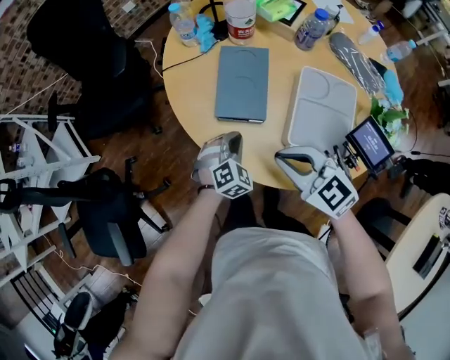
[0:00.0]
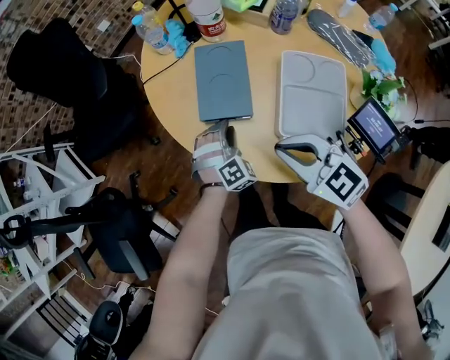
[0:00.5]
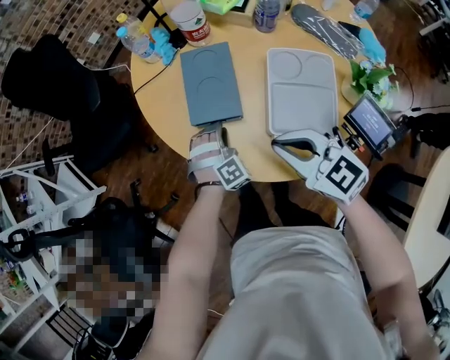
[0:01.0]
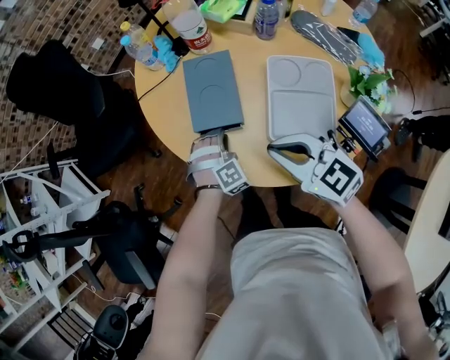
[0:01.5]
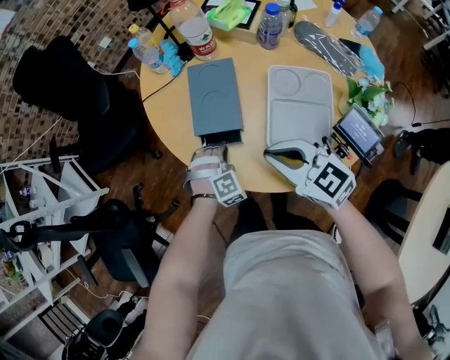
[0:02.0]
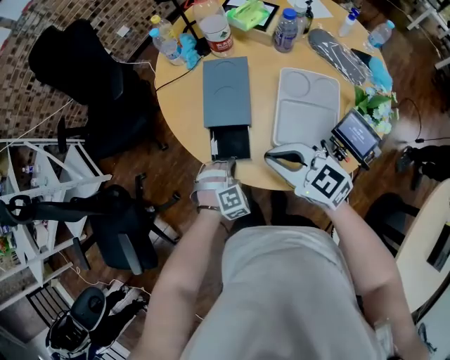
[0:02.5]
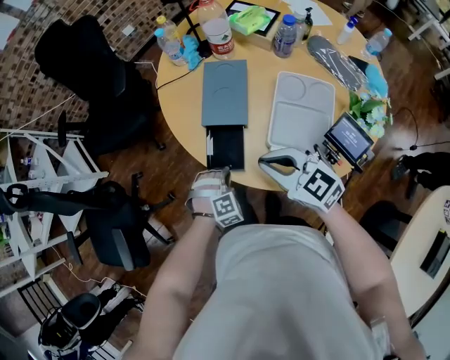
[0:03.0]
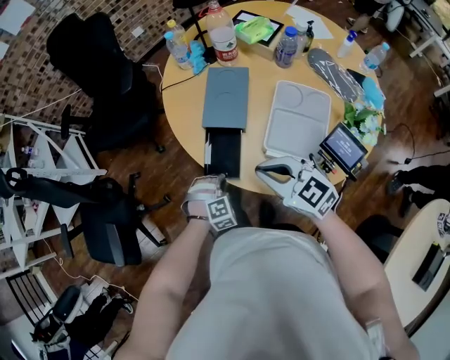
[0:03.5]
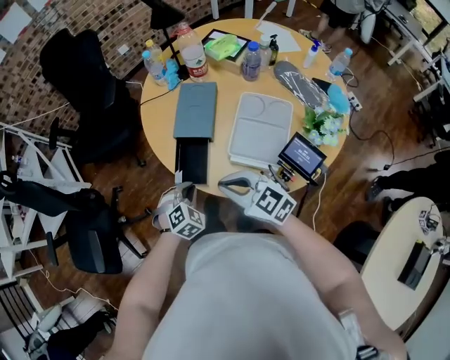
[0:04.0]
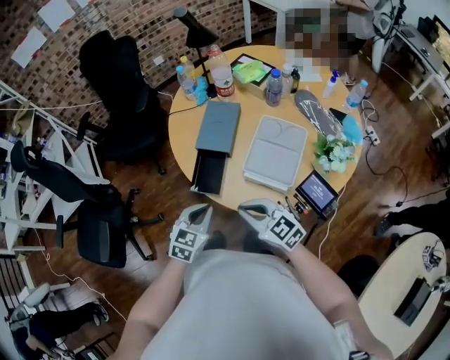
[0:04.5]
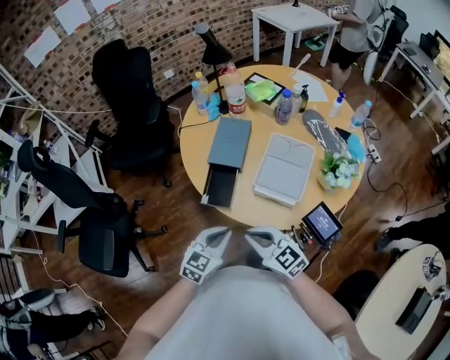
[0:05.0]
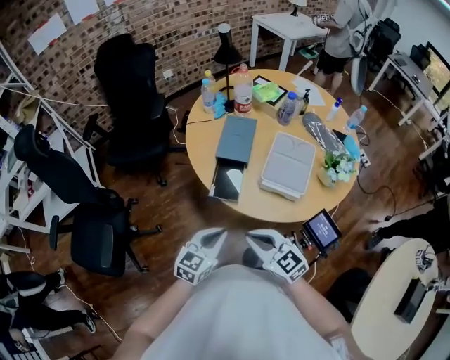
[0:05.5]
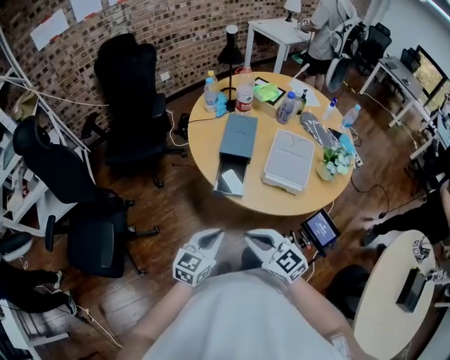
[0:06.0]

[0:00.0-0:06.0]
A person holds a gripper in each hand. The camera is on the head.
0:00.0 to 0:02.0: The left gripper swivels approximately 30 degrees.
0:02.0 to 0:04.0: The right gripper heads backward and to the left, covering approximately 10 cm; the left gripper heads backward, to the left and upward, covering some 15 cm, and turns by some 30 degrees.
0:04.0 to 0:06.0: The left gripper goes approximately 20 cm backward, upward and to the left, and tilts its fingers some 30 degrees upward. The right gripper shifts approximately 20 cm backward and to the left.

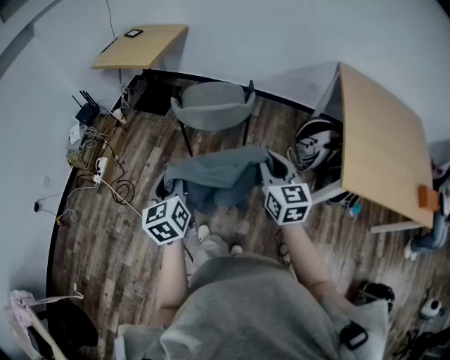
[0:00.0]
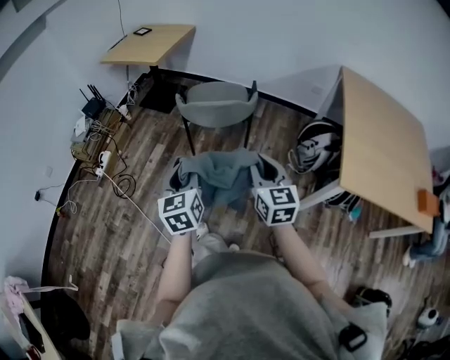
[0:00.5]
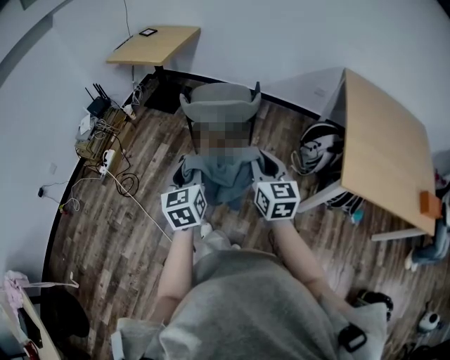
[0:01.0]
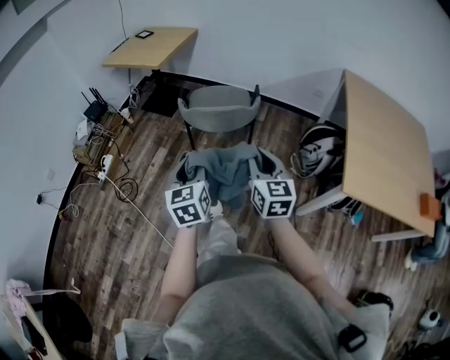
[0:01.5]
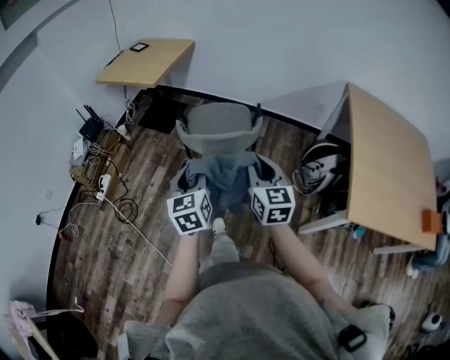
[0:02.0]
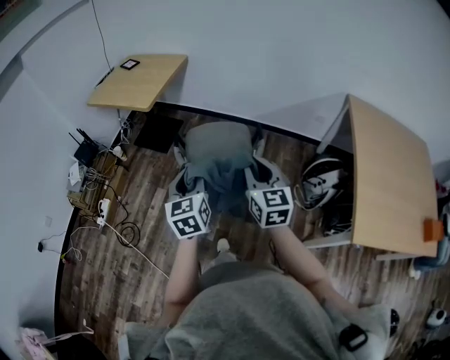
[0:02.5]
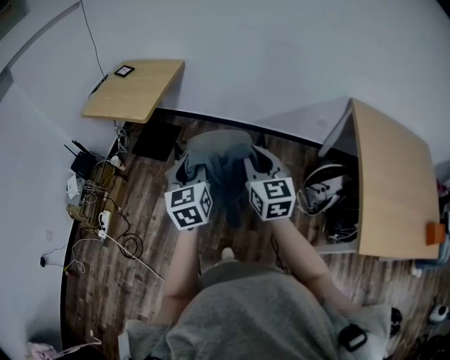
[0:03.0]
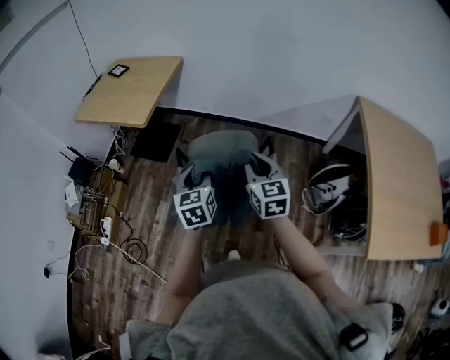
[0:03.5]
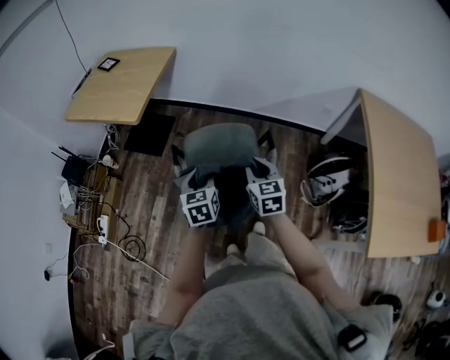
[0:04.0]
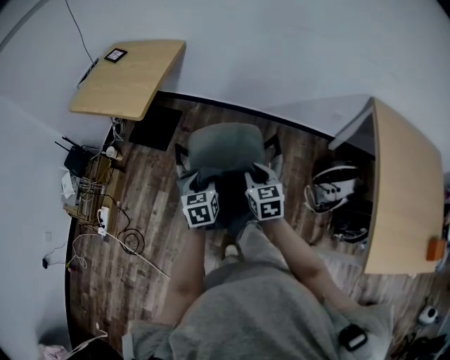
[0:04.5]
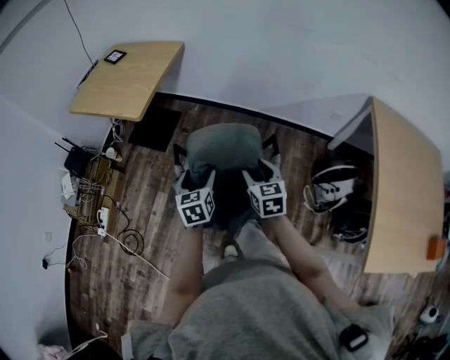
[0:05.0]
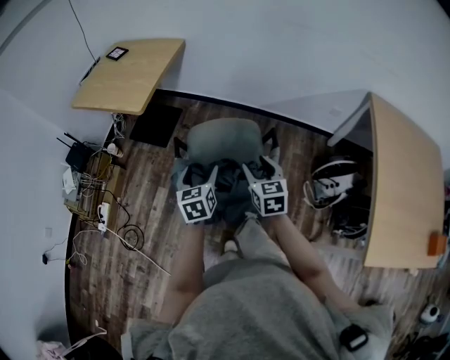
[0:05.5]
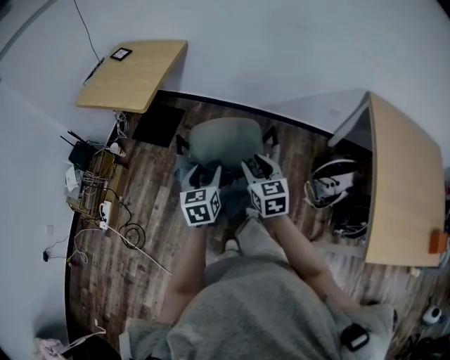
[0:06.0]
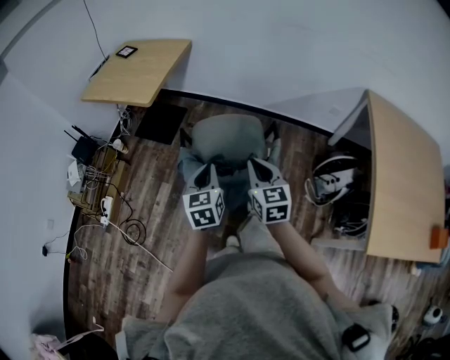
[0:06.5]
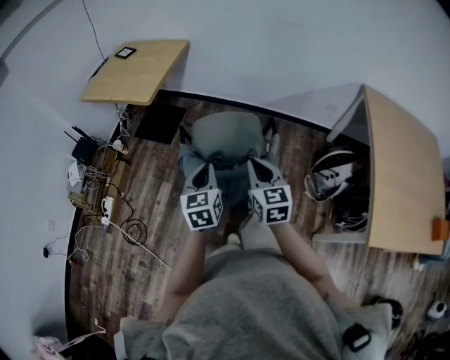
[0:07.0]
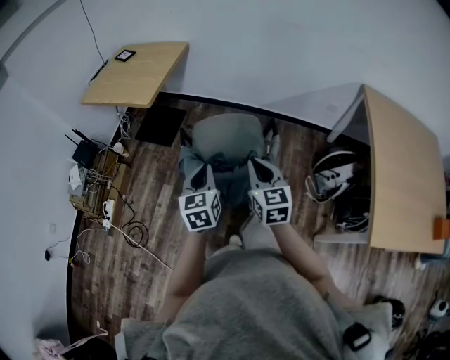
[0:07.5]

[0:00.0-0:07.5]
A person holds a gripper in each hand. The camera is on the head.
0:00.0 to 0:02.0: The left gripper shifts about 15 cm forward and to the right. Meanwhile the right gripper heads forward, covering approximately 10 cm.
0:02.0 to 0:04.0: The two grippers go about 30 cm forward.
0:04.0 to 0:05.5: The right gripper opens up; the left gripper opens its fingers.
0:05.5 to 0:07.5: The two grippers go some 10 cm backward and upward. The right gripper closes, while the left gripper closes.

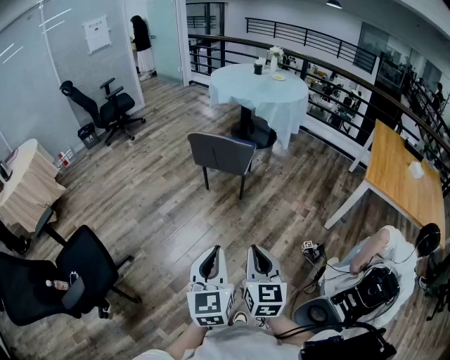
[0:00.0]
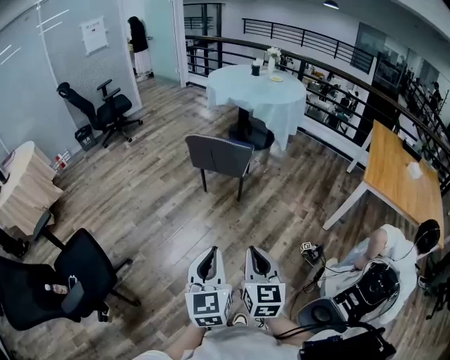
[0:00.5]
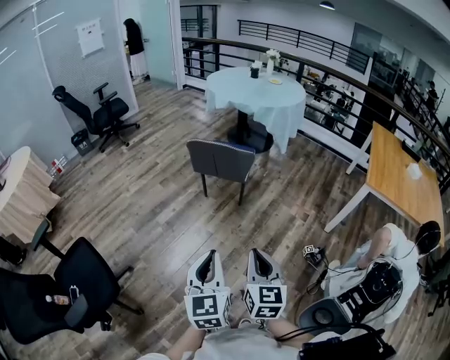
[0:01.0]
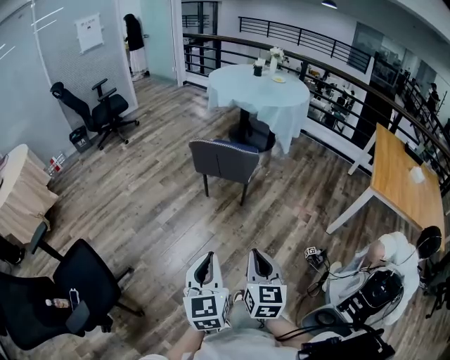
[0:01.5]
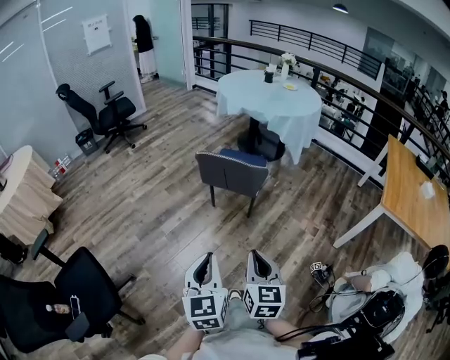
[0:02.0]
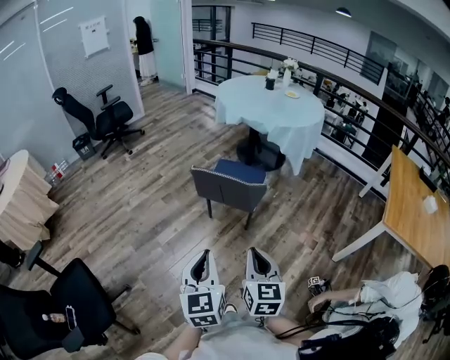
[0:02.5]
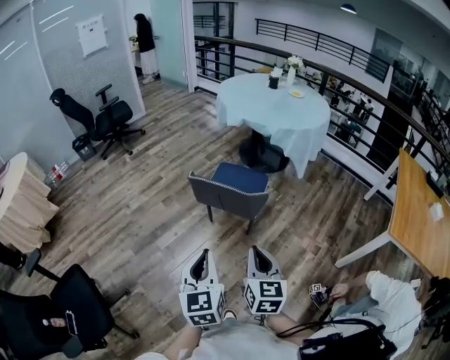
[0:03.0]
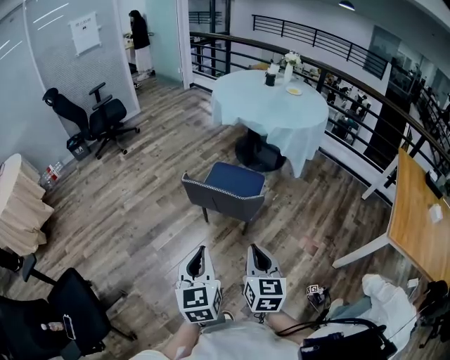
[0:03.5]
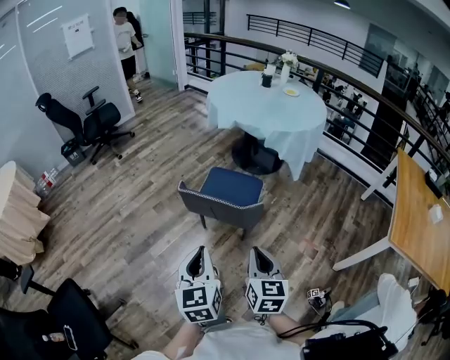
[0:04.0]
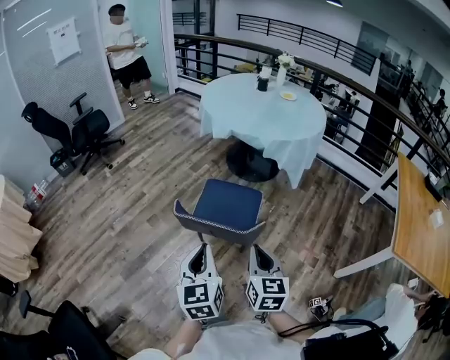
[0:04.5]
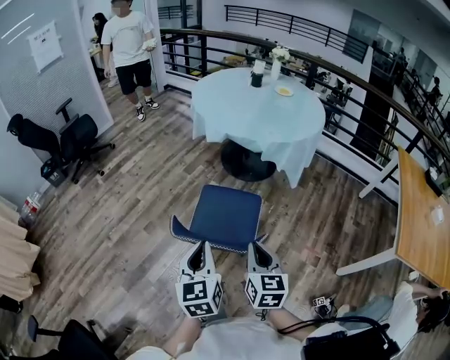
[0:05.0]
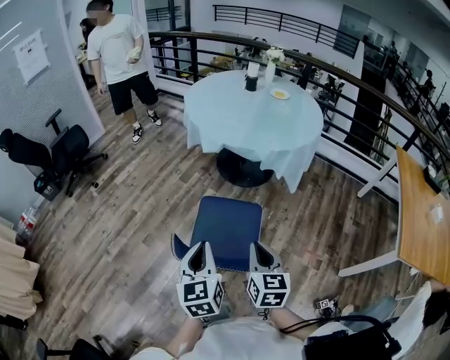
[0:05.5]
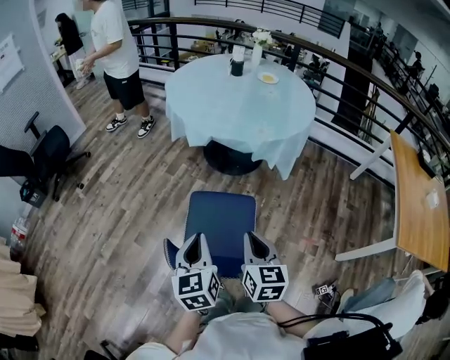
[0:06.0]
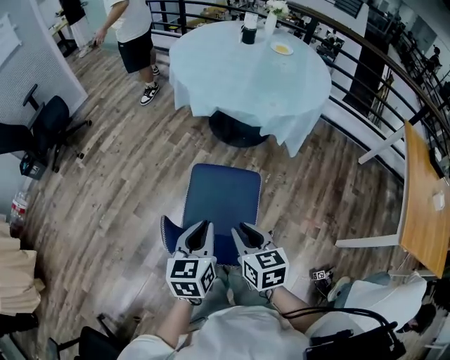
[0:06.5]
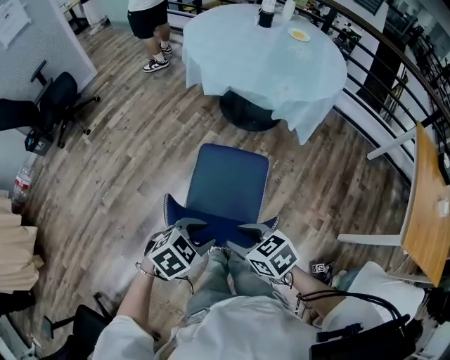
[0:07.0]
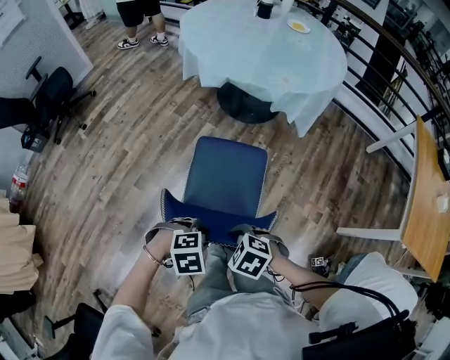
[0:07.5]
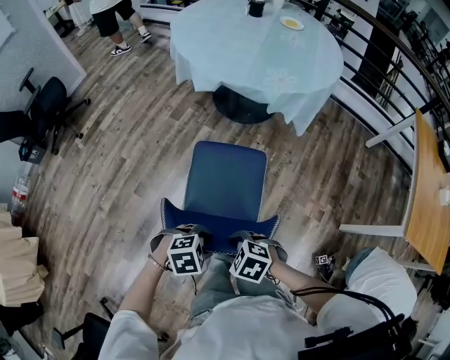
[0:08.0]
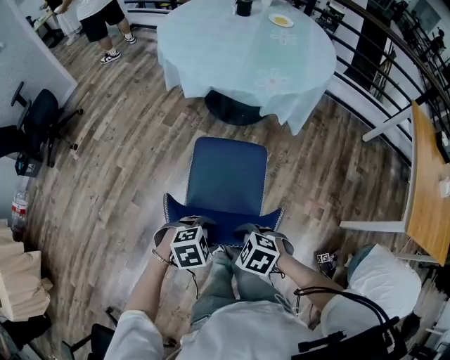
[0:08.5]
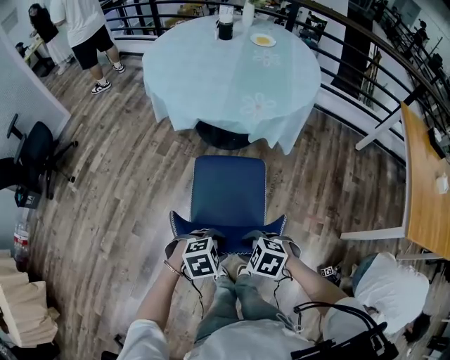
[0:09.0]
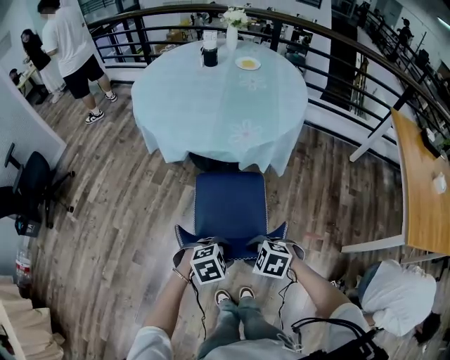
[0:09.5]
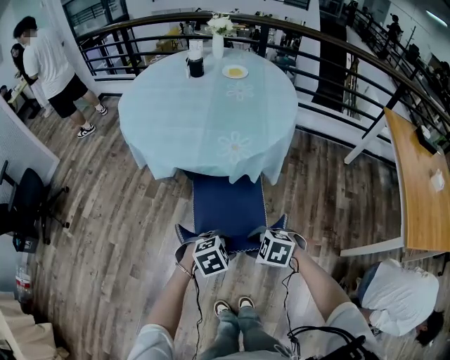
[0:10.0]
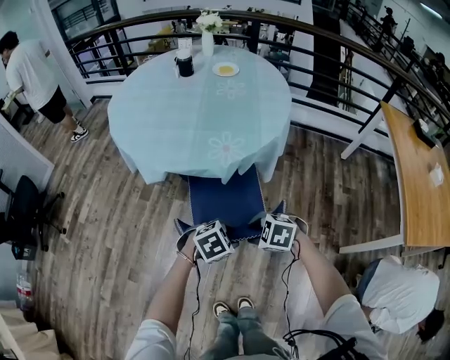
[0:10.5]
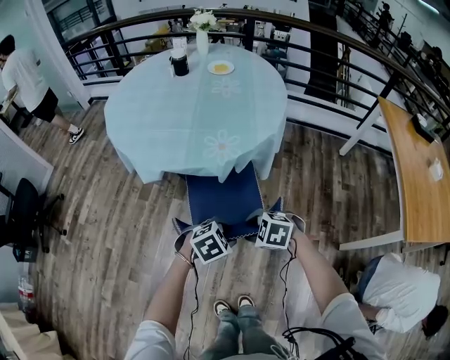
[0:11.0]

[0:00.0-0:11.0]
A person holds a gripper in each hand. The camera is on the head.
0:00.0 to 0:02.0: The right gripper shifts approximately 15 cm forward, while the left gripper shifts roughly 20 cm forward and to the left.
0:02.0 to 0:03.5: Both grippers travel together forward, approximately 20 cm.
0:03.5 to 0:05.5: Both grippers move forward, roughly 35 cm.
0:05.5 to 0:07.5: Both grippers travel together downward, some 20 cm. The left gripper tips its fingers downward by approximately 60 degrees, and opens; the right gripper angles its fingers downward, by about 50 degrees, and opens.
0:07.5 to 0:09.0: The left gripper moves some 15 cm. Meanwhile the right gripper ends up some 15 cm from where it was.
0:09.0 to 0:11.0: The right gripper shifts by roughly 25 cm, while the left gripper changes place by roughly 25 cm.

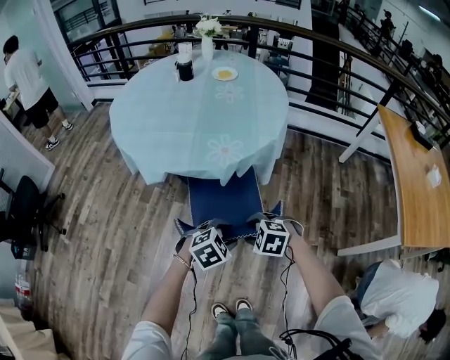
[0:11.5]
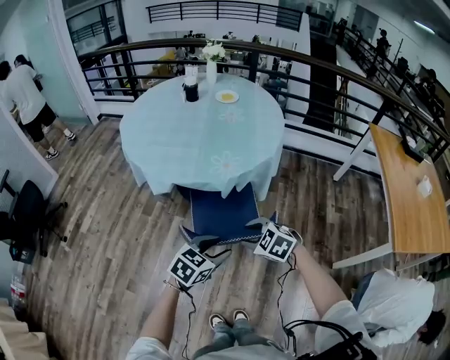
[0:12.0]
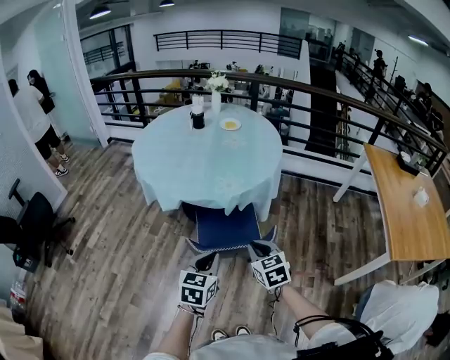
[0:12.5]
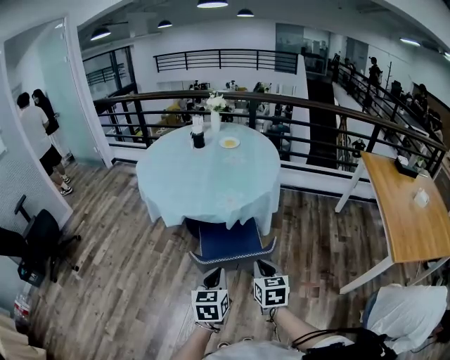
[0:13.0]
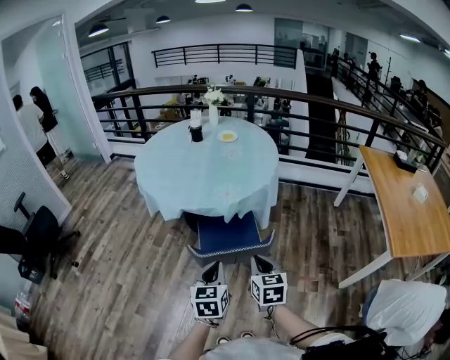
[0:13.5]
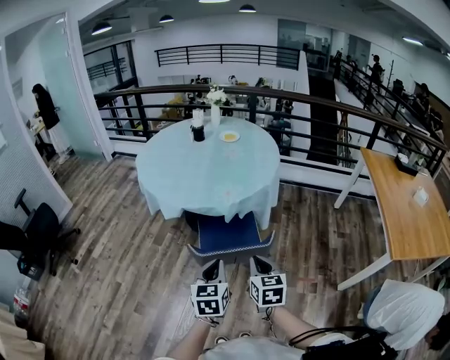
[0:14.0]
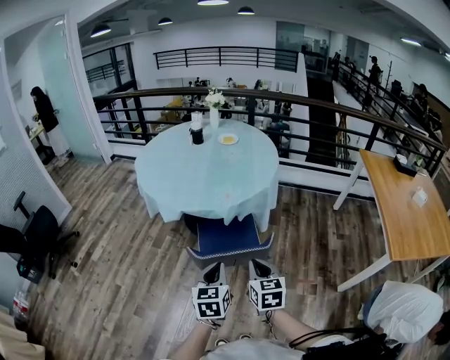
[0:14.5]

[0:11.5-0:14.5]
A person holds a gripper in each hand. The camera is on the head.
0:11.5 to 0:13.0: The two grippers go some 15 cm upward. The left gripper tips its fingers upward by roughly 30 degrees, and closes its fingers. The right gripper points its fingers about 40 degrees further upward, and closes up.
0:13.0 to 0:14.5: There are only small adjustments of the grippers.
